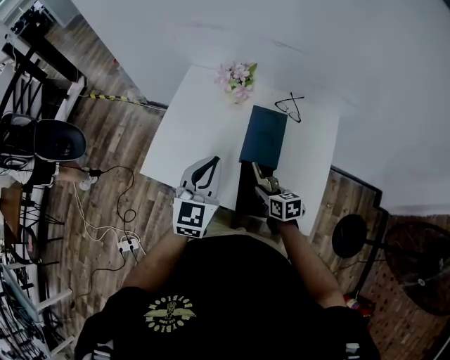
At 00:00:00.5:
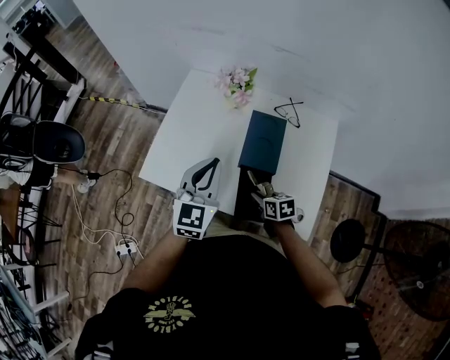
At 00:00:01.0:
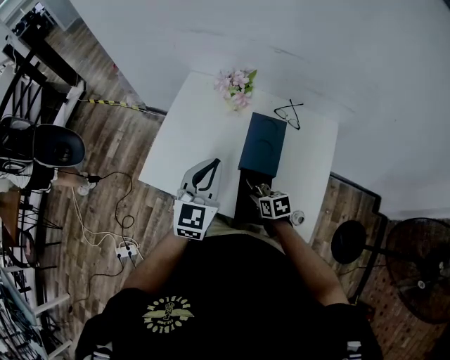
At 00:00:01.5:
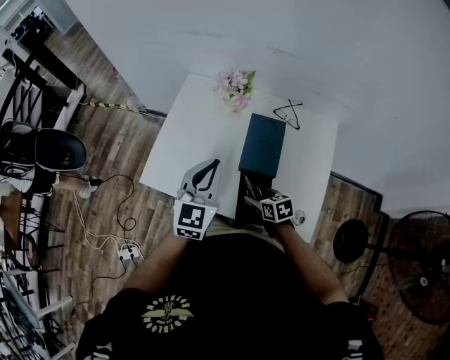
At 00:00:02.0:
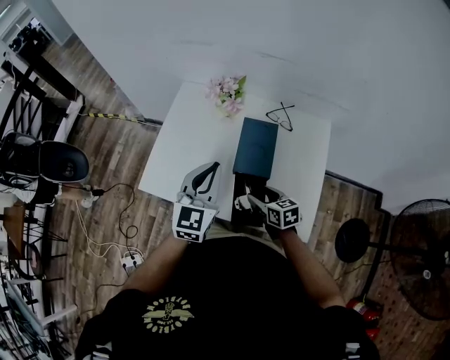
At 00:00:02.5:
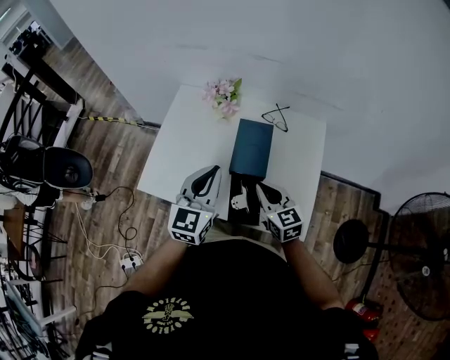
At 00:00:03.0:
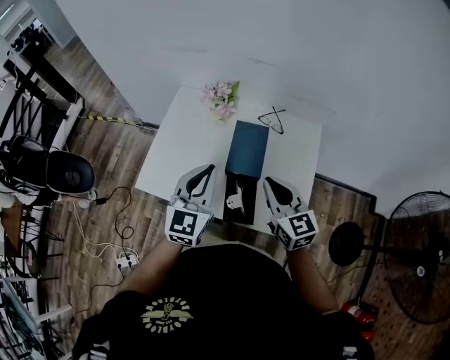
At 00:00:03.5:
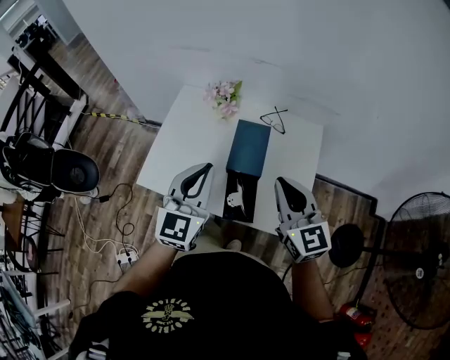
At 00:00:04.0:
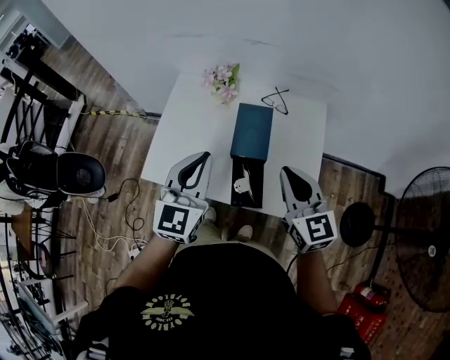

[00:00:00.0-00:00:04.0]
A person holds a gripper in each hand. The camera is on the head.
00:00:00.0 to 00:00:02.0: The right gripper opens up.
00:00:02.0 to 00:00:04.0: The left gripper travels upward by roughly 10 cm. The right gripper heads upward, covering some 25 cm, turns by approximately 40 degrees, and closes its fingers.

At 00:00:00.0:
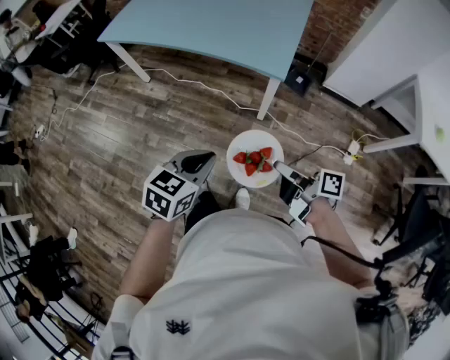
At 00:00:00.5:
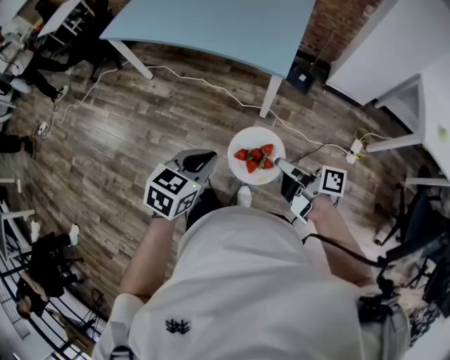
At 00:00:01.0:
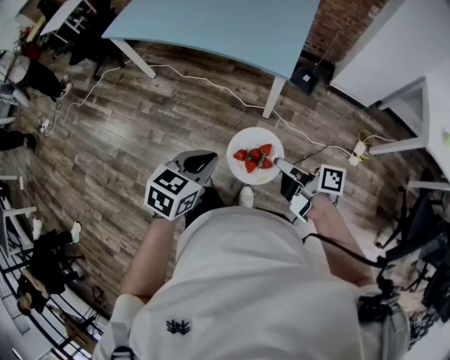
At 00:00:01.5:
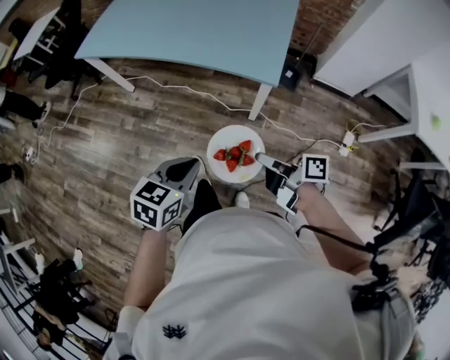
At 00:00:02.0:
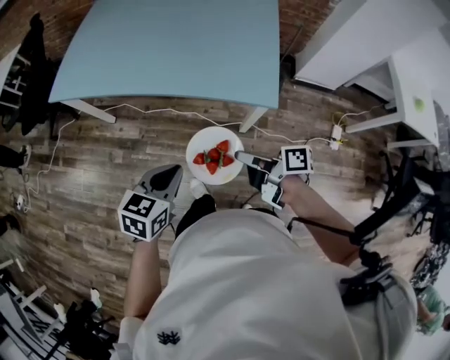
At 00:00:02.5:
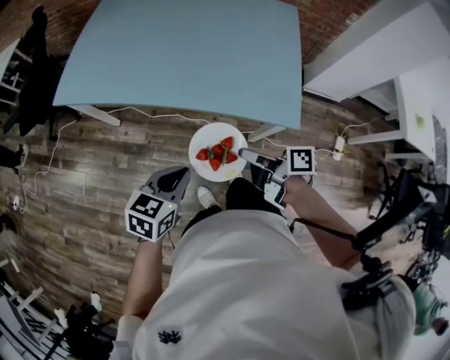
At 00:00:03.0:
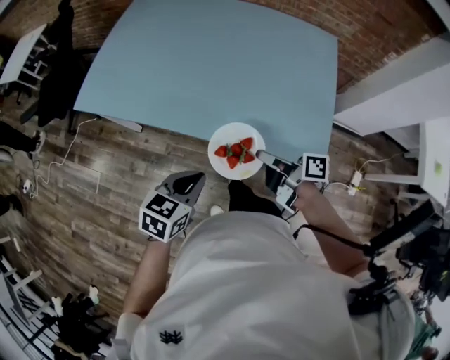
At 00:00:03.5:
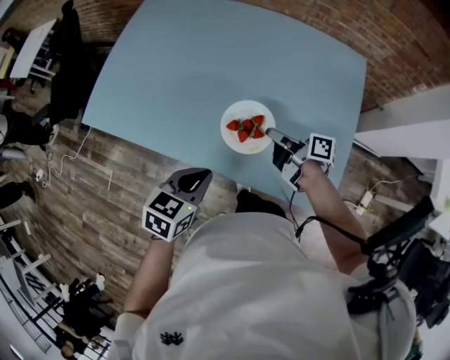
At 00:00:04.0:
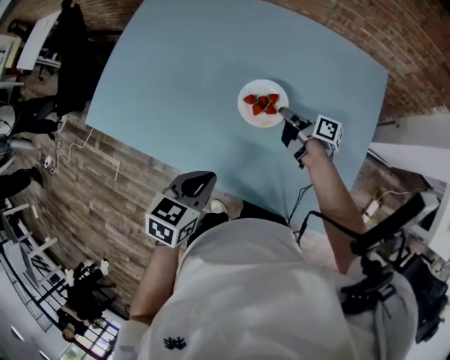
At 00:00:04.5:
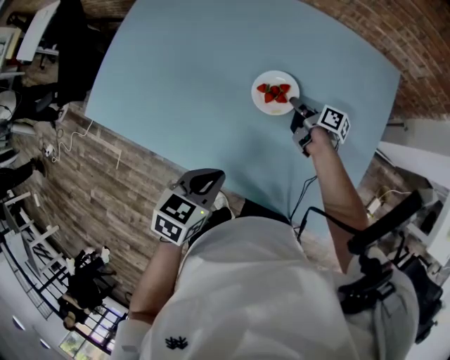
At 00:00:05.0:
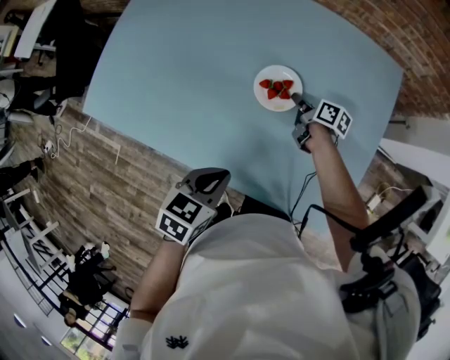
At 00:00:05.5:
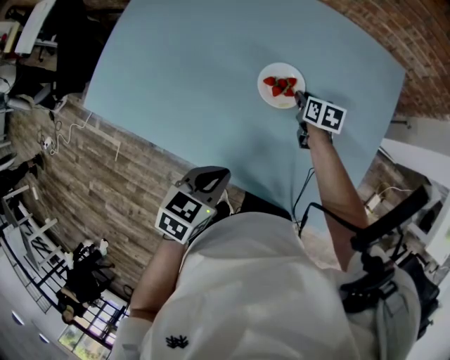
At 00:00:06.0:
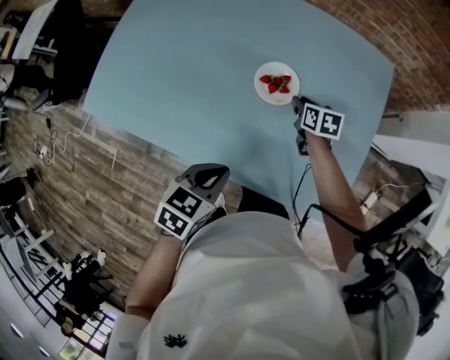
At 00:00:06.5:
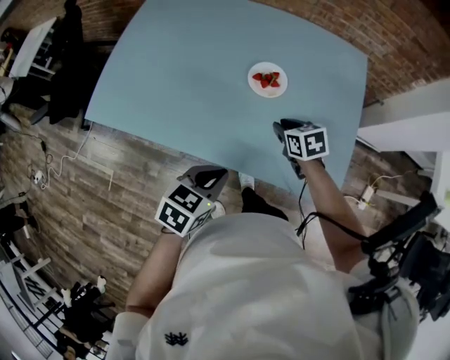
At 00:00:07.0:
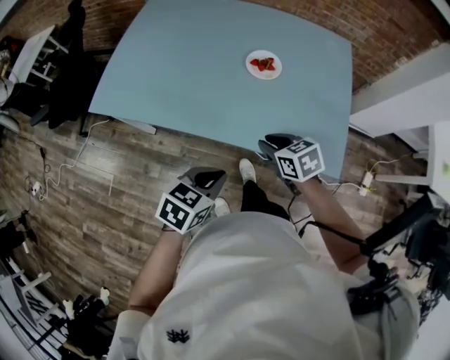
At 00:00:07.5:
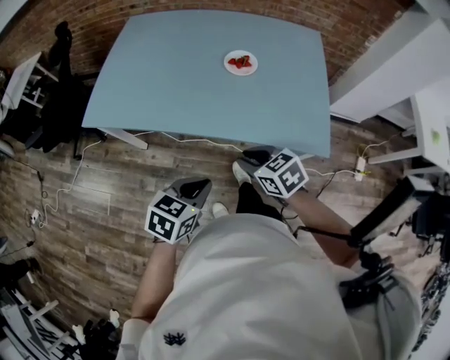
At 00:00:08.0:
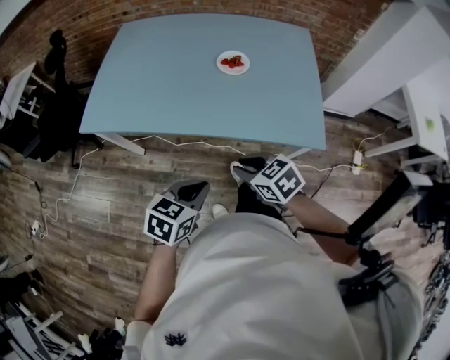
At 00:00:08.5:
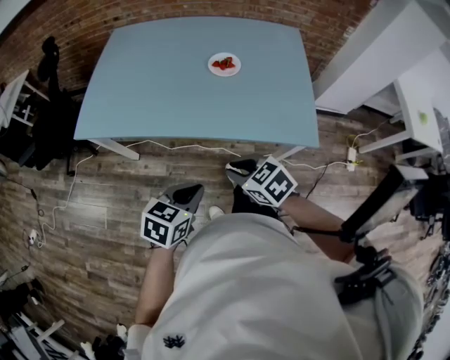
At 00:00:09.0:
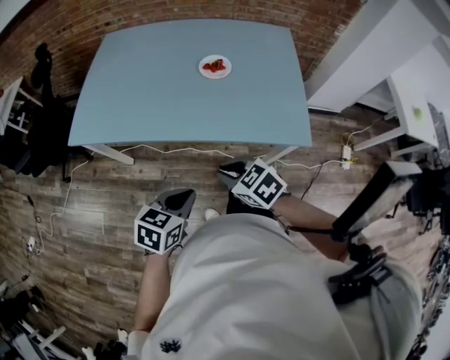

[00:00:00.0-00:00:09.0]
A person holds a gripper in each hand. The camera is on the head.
00:00:00.0 to 00:00:02.0: The grippers both shift forward and to the left by roughly 25 cm.
00:00:02.0 to 00:00:04.5: The right gripper travels forward by about 60 cm; the left gripper travels forward by approximately 35 cm.
00:00:04.5 to 00:00:07.0: The right gripper goes about 35 cm backward and upward, and twists some 60 degrees counterclockwise, seen from behind. The left gripper goes about 20 cm backward.
00:00:07.0 to 00:00:09.0: The right gripper shifts about 15 cm backward and to the left. The left gripper heads backward, covering roughly 10 cm.

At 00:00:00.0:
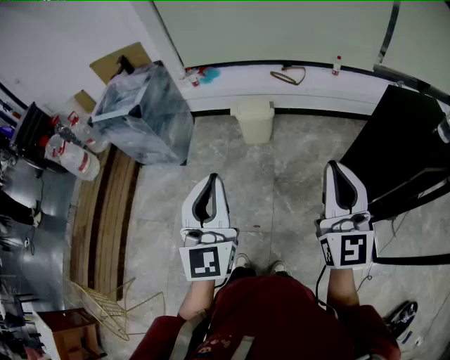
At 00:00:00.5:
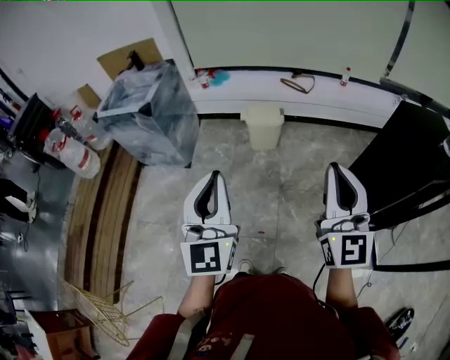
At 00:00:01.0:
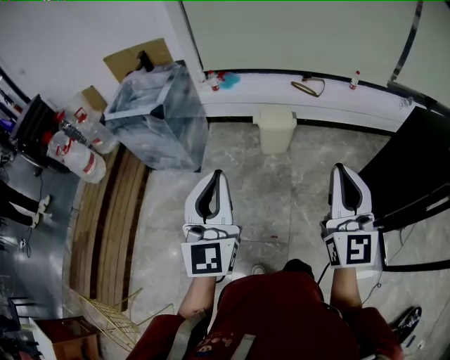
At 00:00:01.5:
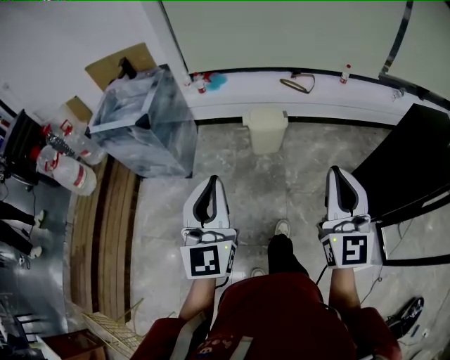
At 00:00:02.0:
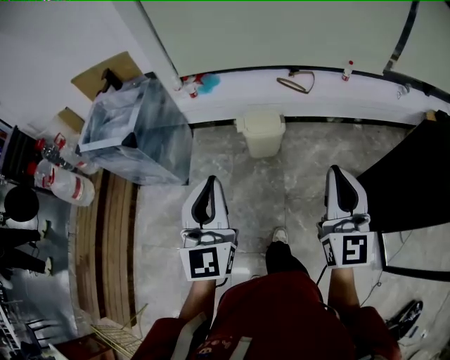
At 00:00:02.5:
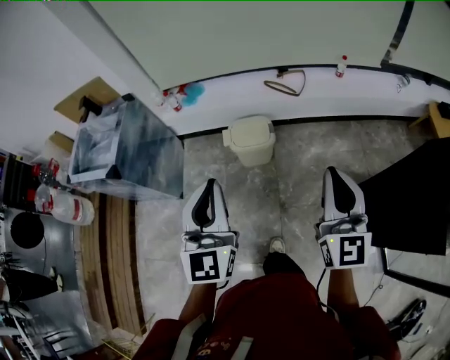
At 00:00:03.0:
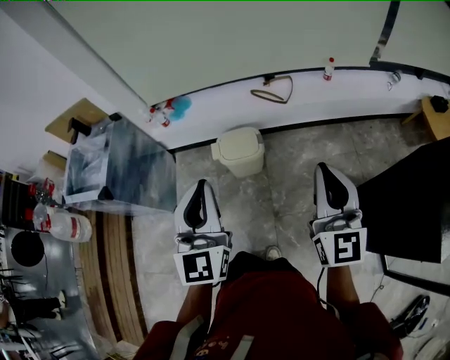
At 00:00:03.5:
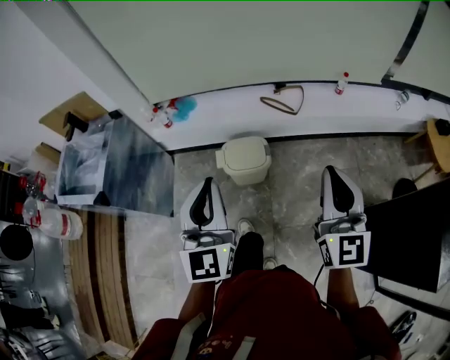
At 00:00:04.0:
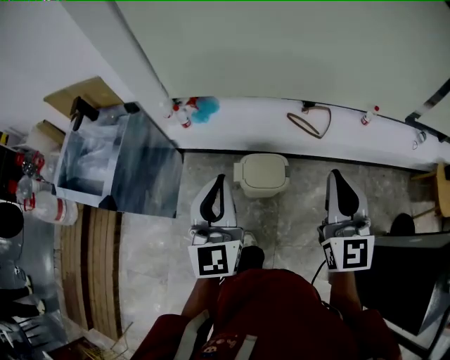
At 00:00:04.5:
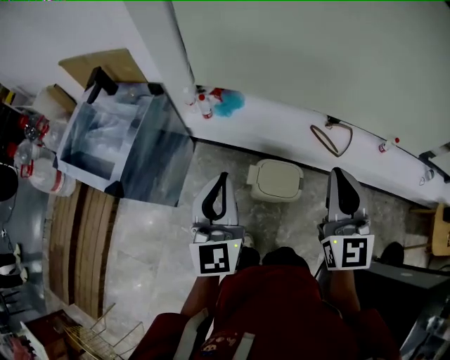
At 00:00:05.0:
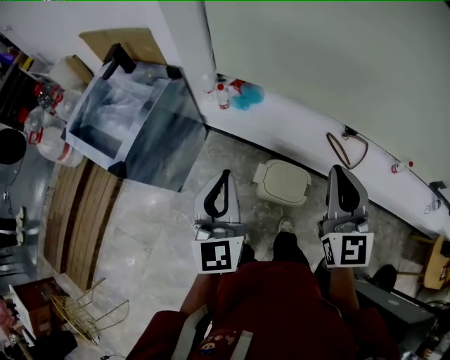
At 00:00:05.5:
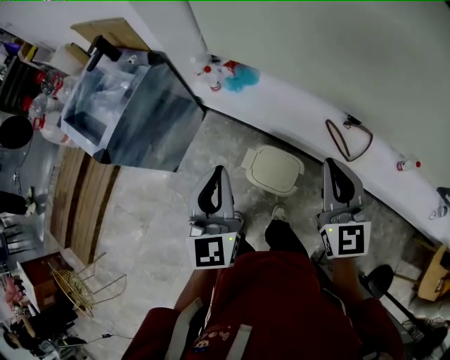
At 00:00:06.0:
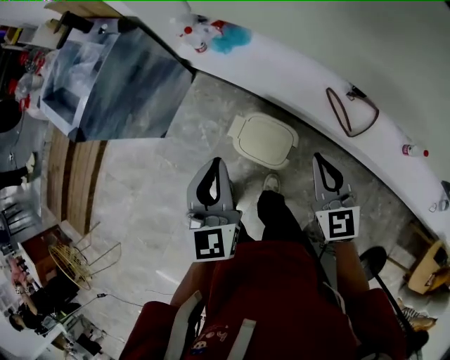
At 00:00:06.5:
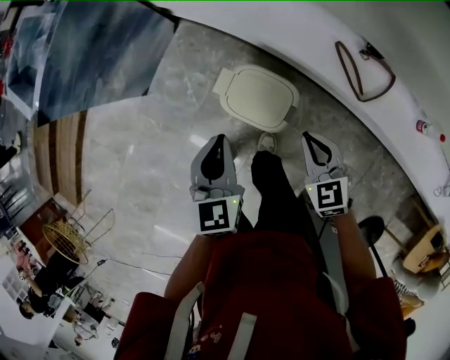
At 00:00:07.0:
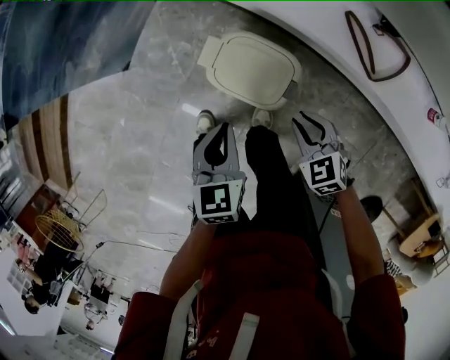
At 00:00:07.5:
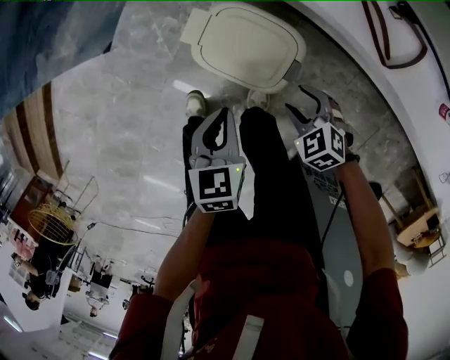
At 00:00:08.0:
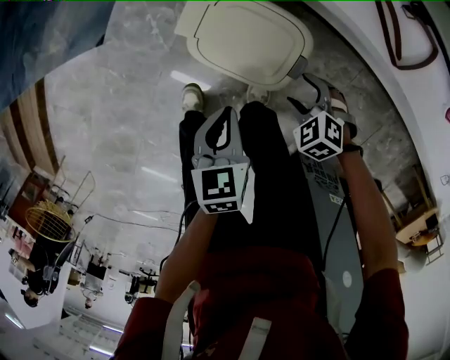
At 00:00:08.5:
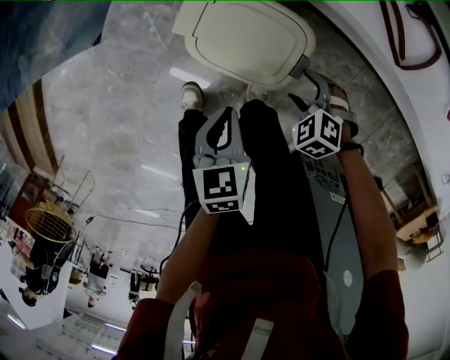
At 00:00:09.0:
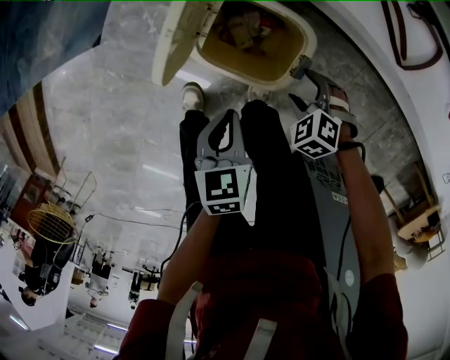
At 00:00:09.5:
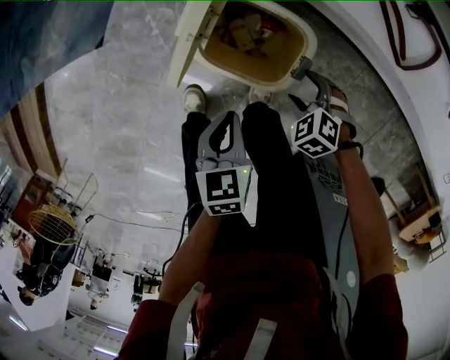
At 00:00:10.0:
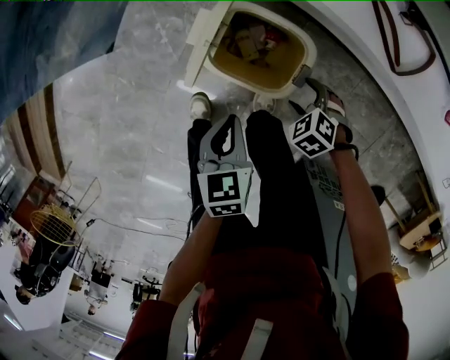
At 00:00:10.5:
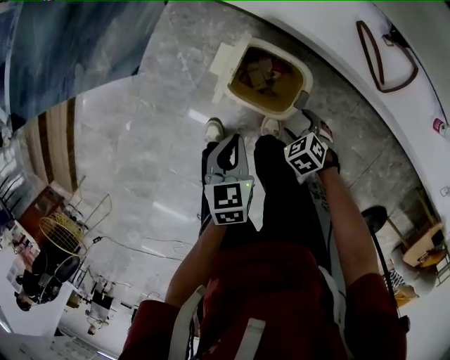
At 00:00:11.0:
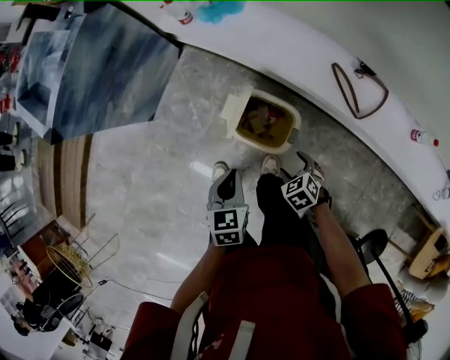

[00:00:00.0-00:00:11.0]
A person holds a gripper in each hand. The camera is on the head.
00:00:00.0 to 00:00:02.0: The left gripper travels forward and to the left by roughly 25 cm. The right gripper heads forward, covering about 20 cm.
00:00:02.0 to 00:00:03.5: The two grippers go approximately 25 cm forward.
00:00:03.5 to 00:00:05.5: The left gripper changes place by roughly 25 cm, and rotates about 30 degrees. Meanwhile the right gripper ends up approximately 35 cm from where it was, and swivels some 40 degrees.
00:00:05.5 to 00:00:07.5: The grippers both shift downward by approximately 50 cm. The left gripper tilts its fingers roughly 40 degrees downward. Meanwhile the right gripper tips its fingers downward by some 50 degrees, and opens.
00:00:07.5 to 00:00:09.0: Both grippers move downward, some 5 cm.
00:00:09.0 to 00:00:11.0: The two grippers go some 15 cm upward. The right gripper turns by roughly 30 degrees.

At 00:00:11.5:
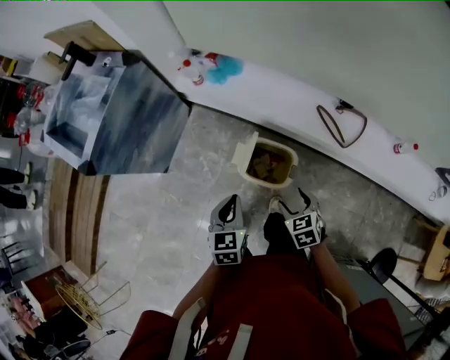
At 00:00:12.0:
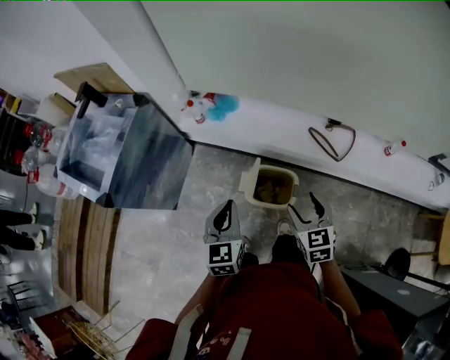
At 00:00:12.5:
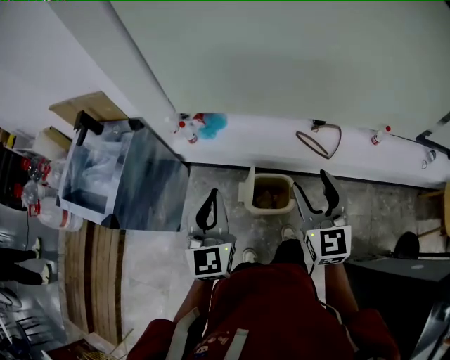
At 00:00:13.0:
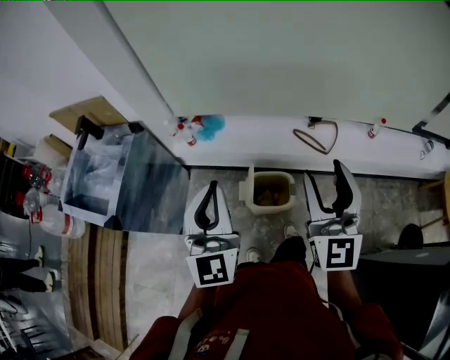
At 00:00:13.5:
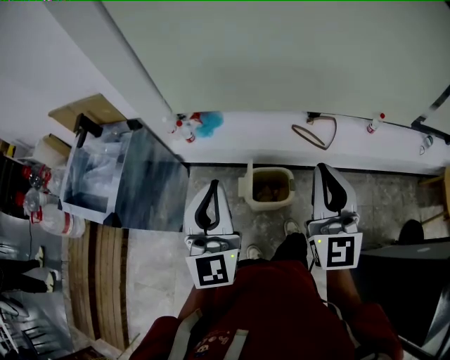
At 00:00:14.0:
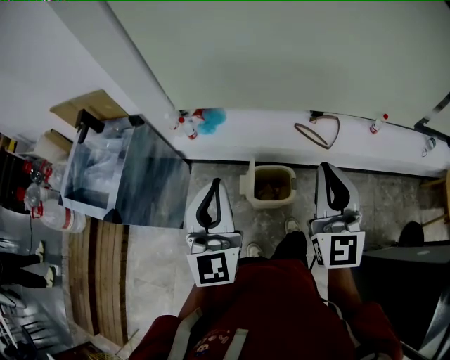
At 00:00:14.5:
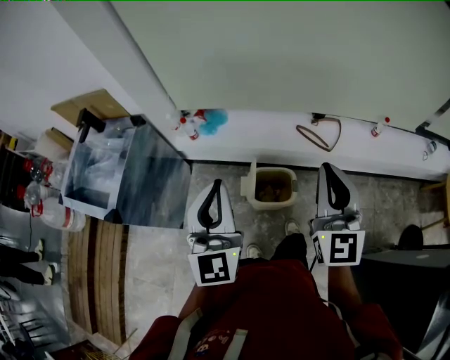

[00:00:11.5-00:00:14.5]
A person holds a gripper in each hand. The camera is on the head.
00:00:11.5 to 00:00:13.0: Both grippers move upward, about 40 cm. The right gripper tilts its fingers about 70 degrees upward; the left gripper angles its fingers upward, by about 50 degrees.
00:00:13.0 to 00:00:14.5: The right gripper closes its fingers.
